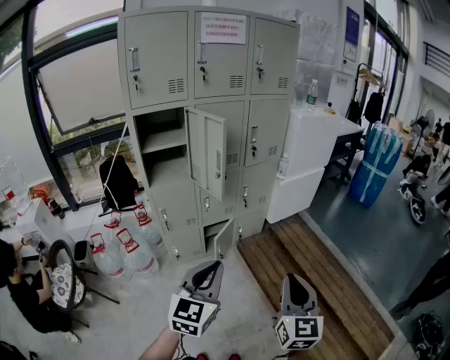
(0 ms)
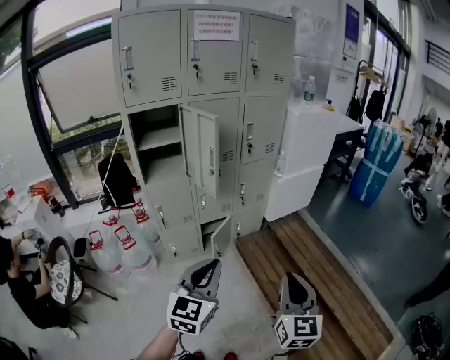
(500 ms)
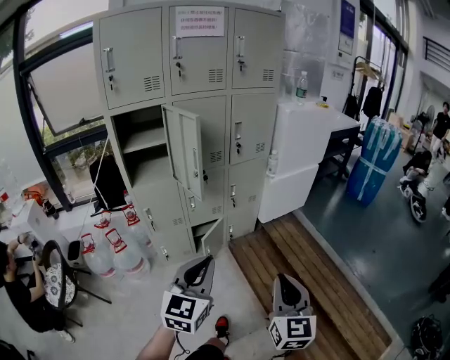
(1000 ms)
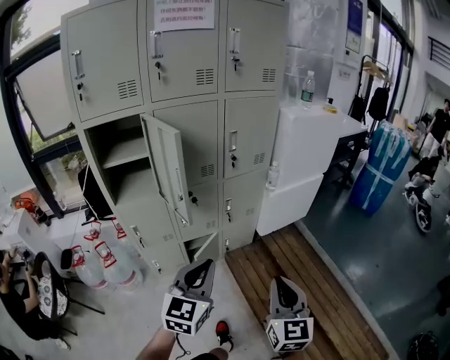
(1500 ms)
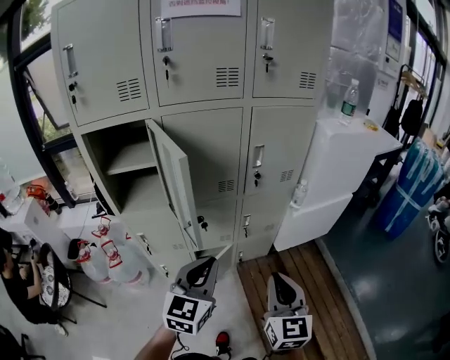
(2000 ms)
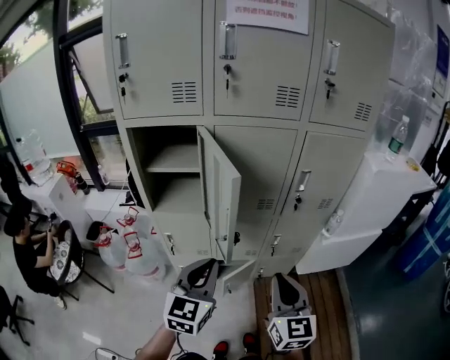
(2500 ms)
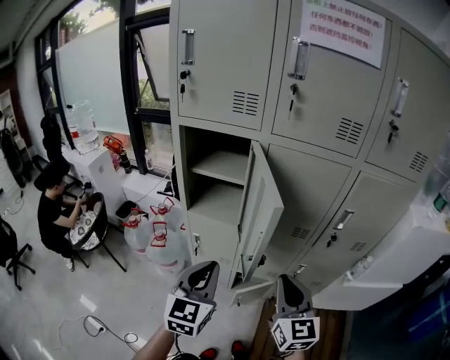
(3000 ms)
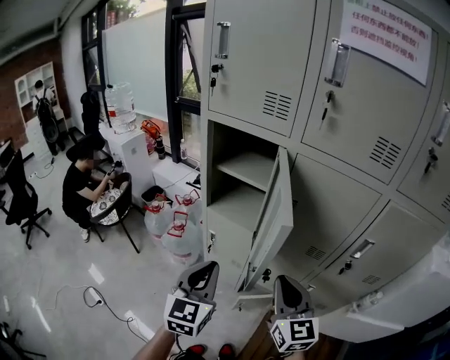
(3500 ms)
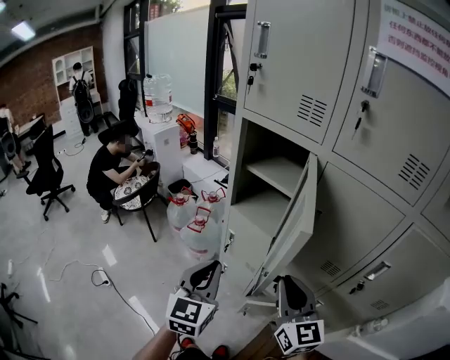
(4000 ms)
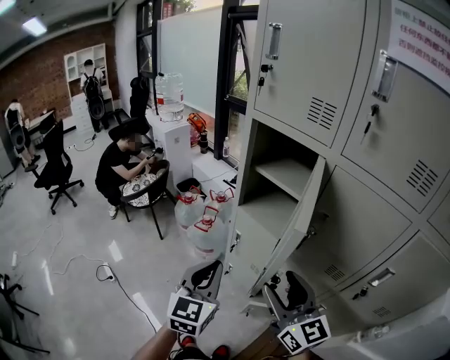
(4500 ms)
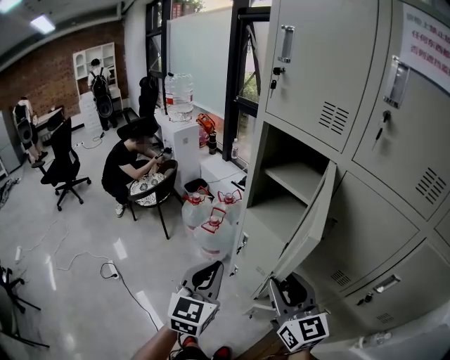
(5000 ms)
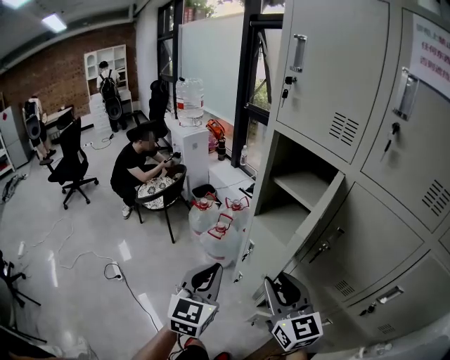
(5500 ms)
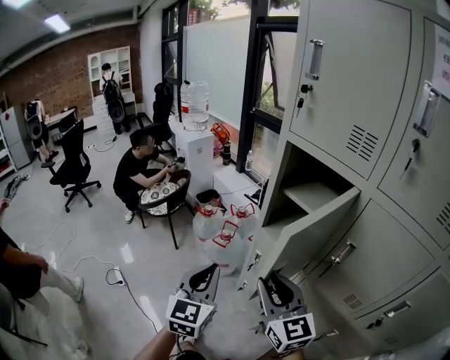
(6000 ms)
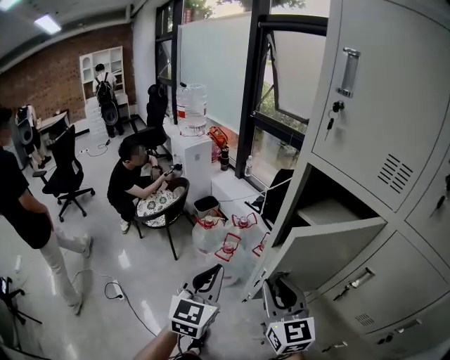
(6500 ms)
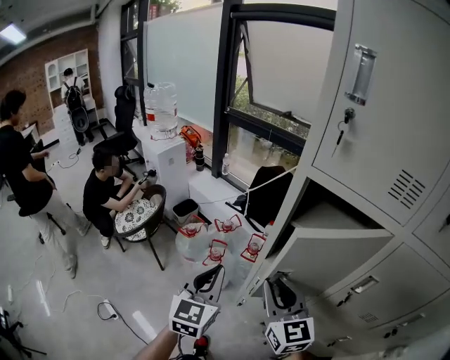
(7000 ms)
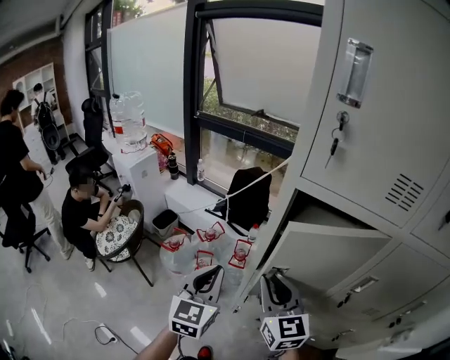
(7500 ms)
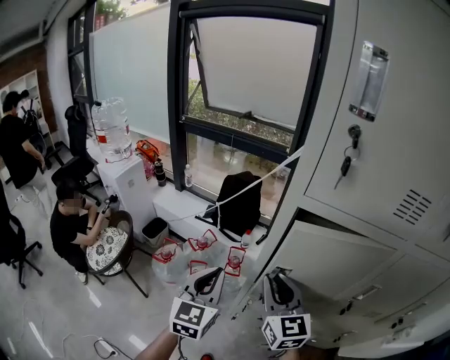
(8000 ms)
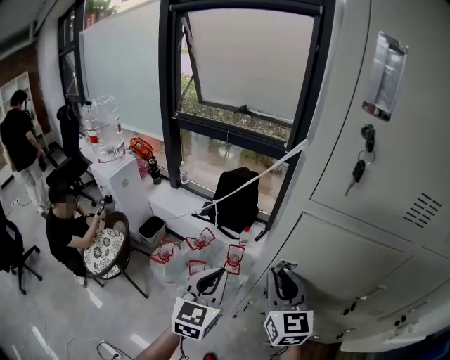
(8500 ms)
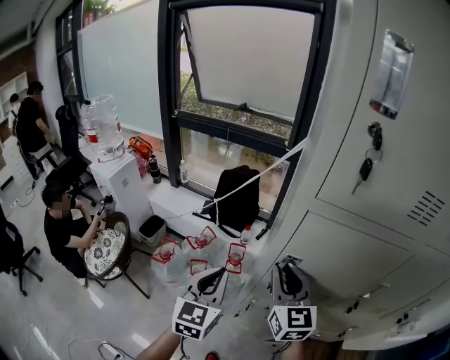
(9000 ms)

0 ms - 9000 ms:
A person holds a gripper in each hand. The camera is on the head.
0 ms - 2000 ms: The two grippers go roughly 35 cm forward.
2000 ms - 4500 ms: The left gripper shifts by some 20 cm, and rotates some 60 degrees. Meanwhile the right gripper ends up roughly 25 cm from where it was, swivels roughly 80 degrees, and opens its fingers.
4500 ms - 7000 ms: The grippers both shift forward and to the left by some 30 cm. The right gripper closes its fingers.
7000 ms - 9000 ms: Both grippers move forward, about 15 cm. The right gripper rotates approximately 30 degrees.

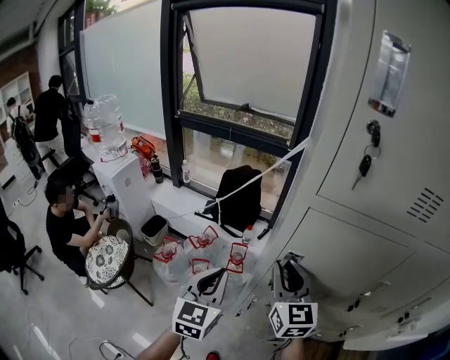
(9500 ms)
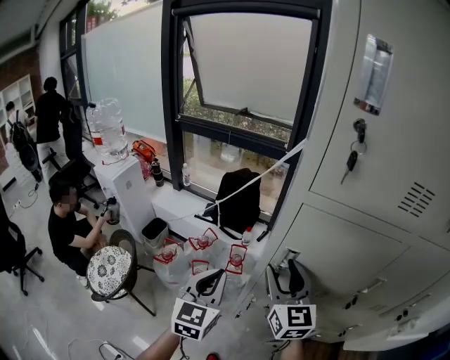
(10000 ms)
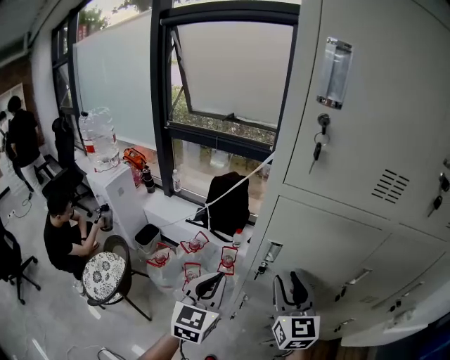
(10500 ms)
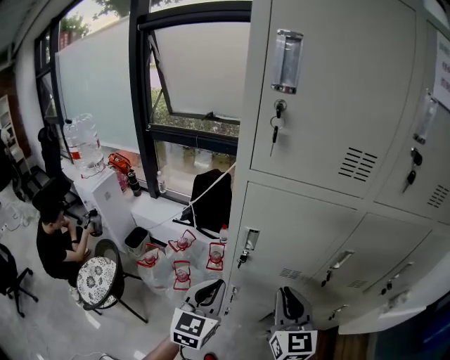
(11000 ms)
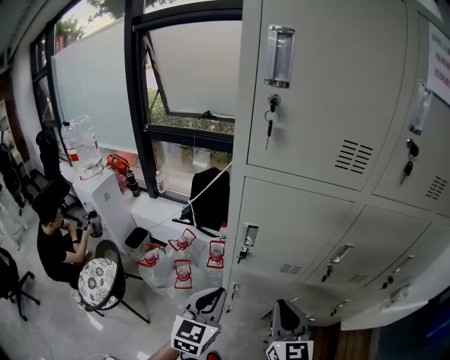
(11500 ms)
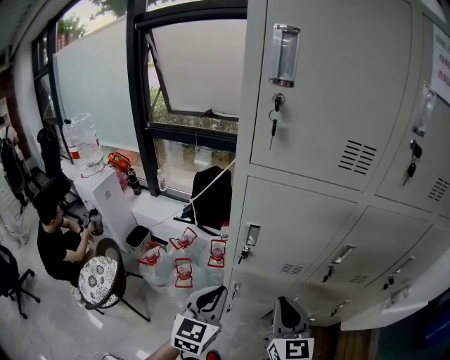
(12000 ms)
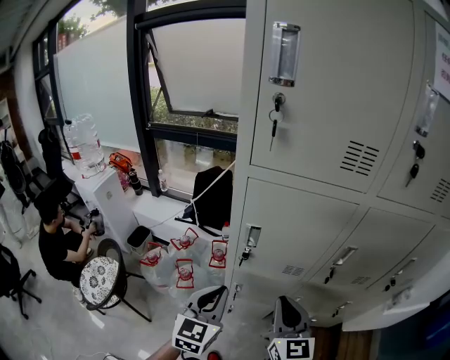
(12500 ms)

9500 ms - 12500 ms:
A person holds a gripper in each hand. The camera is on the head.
9500 ms - 11000 ms: The left gripper travels to the right and backward by some 10 cm, while the right gripper travels backward and to the right by some 20 cm, and opens, then closes once more.
11000 ms - 12500 ms: The grippers stay close to where they were, moving slightly.

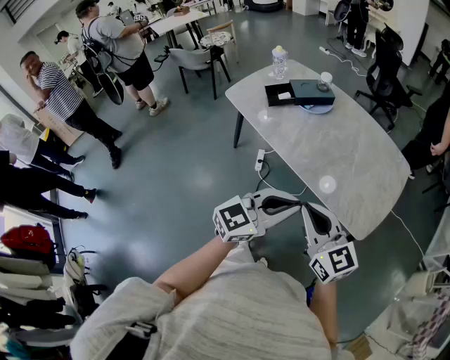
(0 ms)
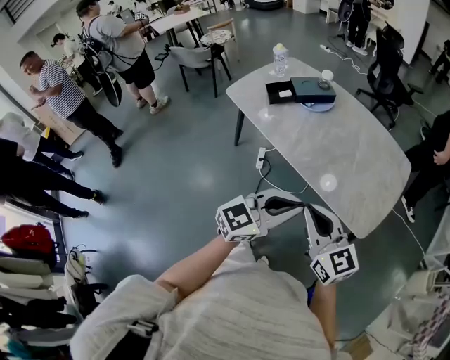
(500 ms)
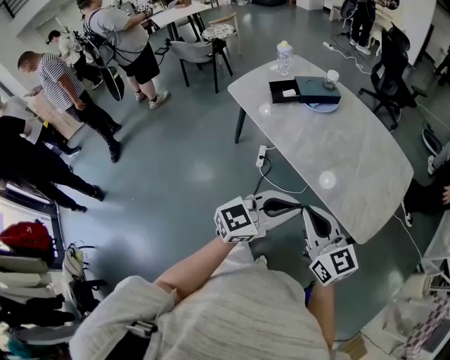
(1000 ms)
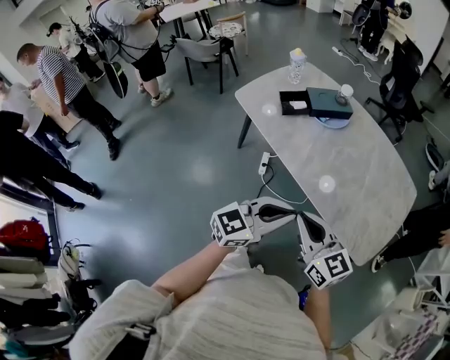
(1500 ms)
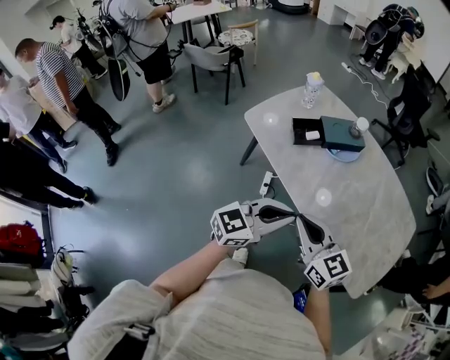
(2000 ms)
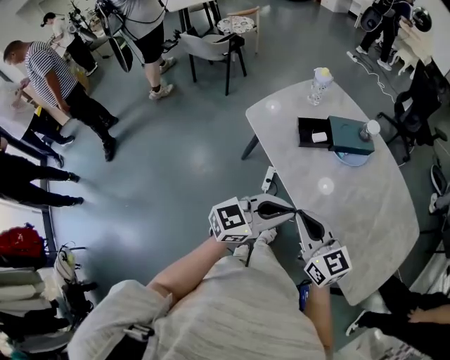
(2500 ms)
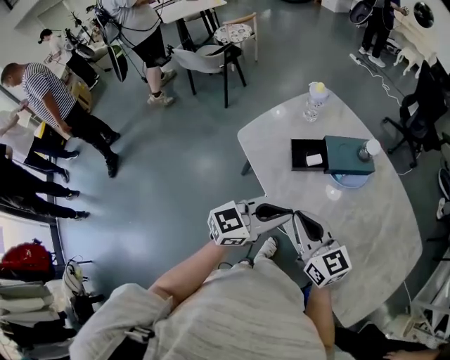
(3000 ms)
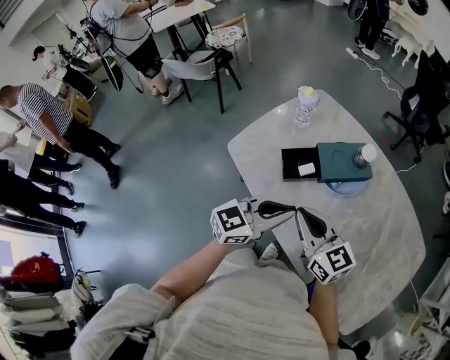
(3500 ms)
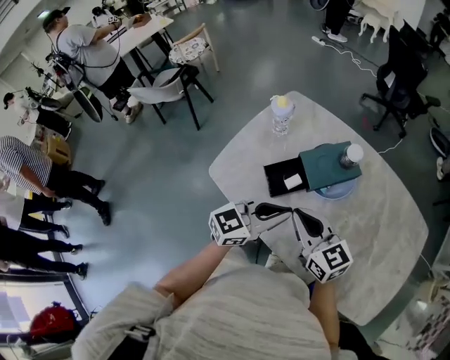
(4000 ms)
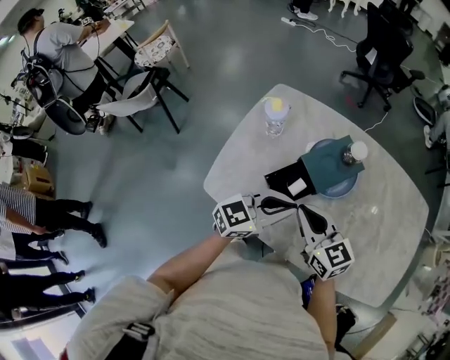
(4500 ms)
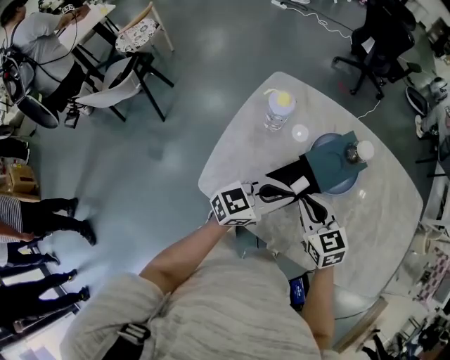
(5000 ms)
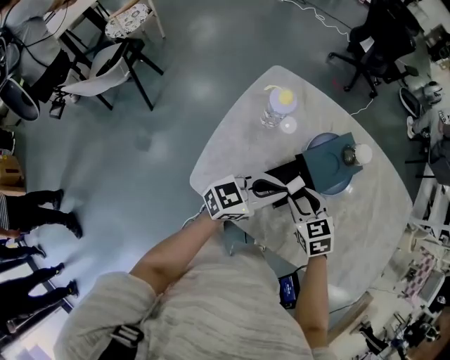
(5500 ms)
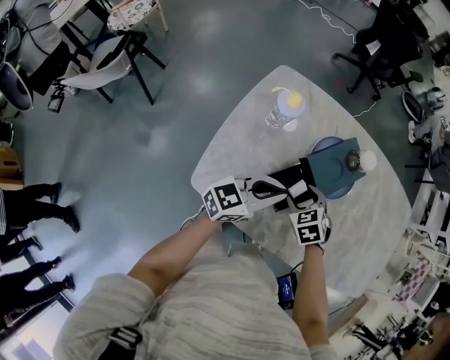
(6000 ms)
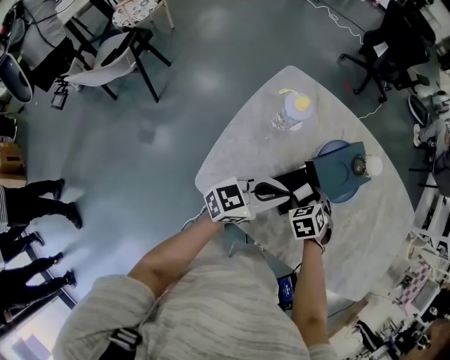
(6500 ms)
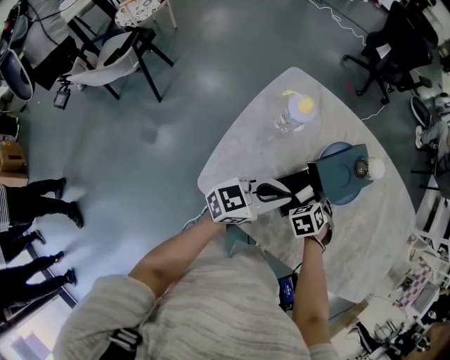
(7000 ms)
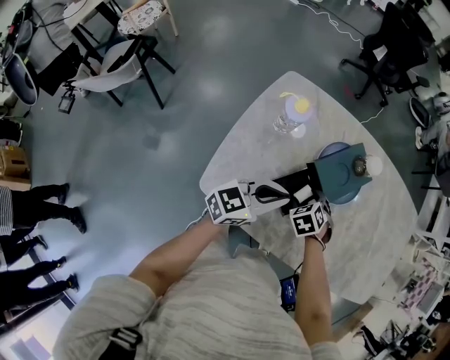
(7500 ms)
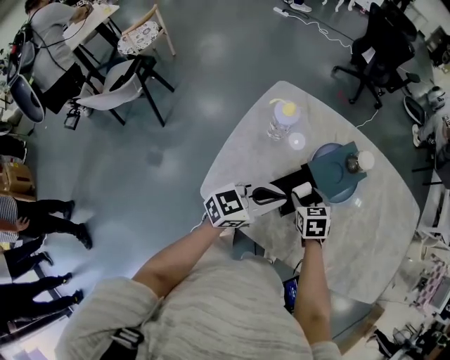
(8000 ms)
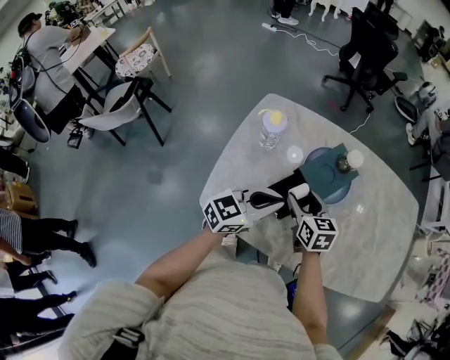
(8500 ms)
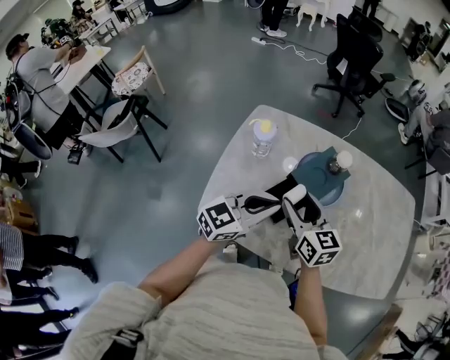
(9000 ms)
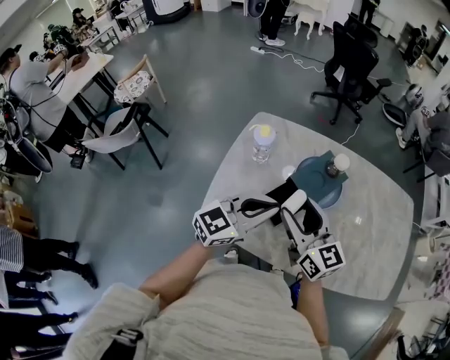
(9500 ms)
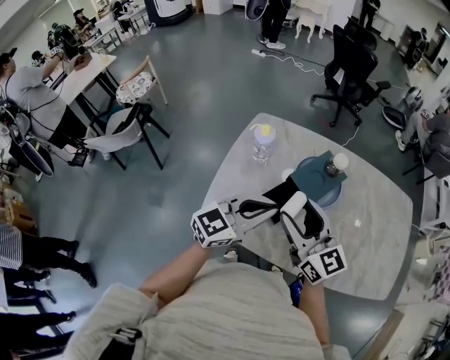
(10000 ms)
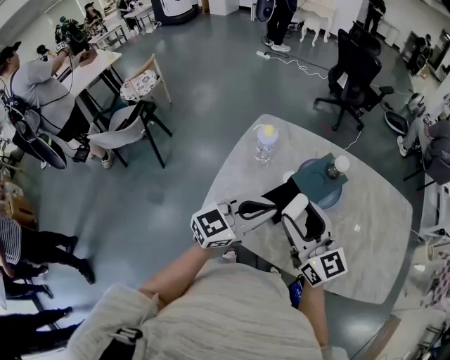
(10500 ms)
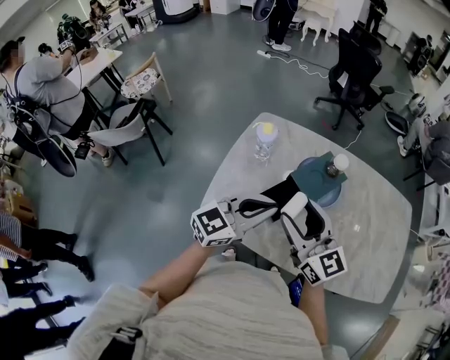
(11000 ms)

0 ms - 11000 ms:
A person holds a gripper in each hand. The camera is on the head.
0 ms - 2000 ms: The grippers both shift forward and to the left by some 25 cm.
2000 ms - 3500 ms: The two grippers go some 30 cm forward.
3500 ms - 5500 ms: The right gripper ends up some 25 cm from where it was, points its fingers approximately 40 degrees further downward, and opens up, while the left gripper ends up about 25 cm from where it was, and swivels some 30 degrees.
5500 ms - 7500 ms: The right gripper heads downward, covering roughly 10 cm, rotates about 30 degrees, and opens.
7500 ms - 9000 ms: The left gripper is displaced upward by roughly 10 cm. Meanwhile the right gripper travels upward by some 20 cm, and tips its fingers upward by some 50 degrees.
9000 ms - 11000 ms: The left gripper goes some 5 cm upward, while the right gripper goes roughly 15 cm upward and backward, and changes its angle by about 20 degrees.

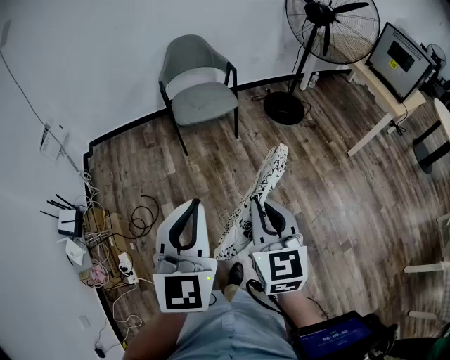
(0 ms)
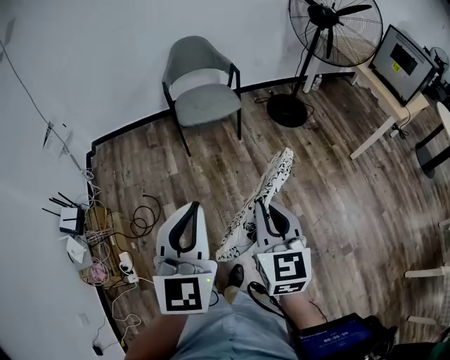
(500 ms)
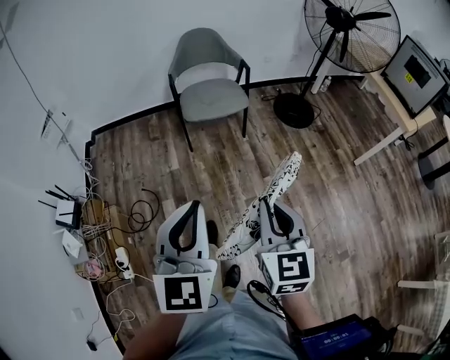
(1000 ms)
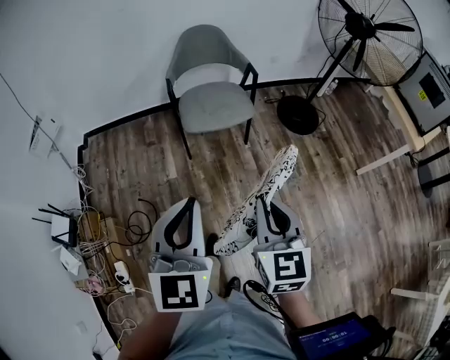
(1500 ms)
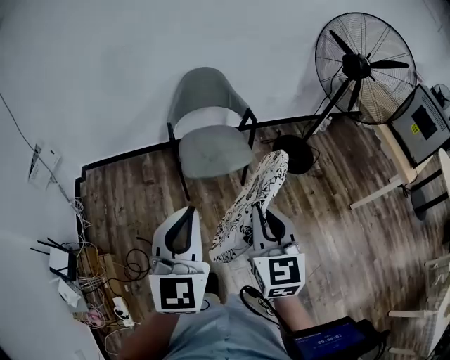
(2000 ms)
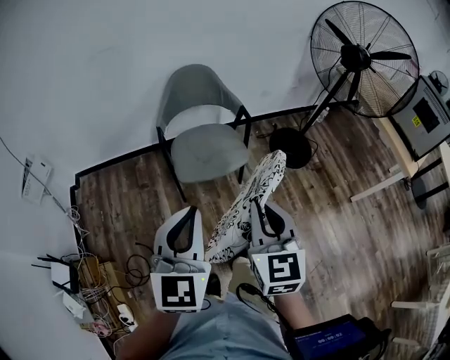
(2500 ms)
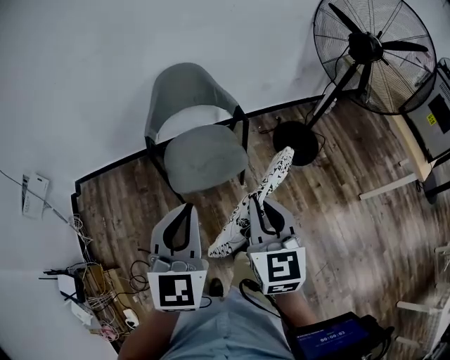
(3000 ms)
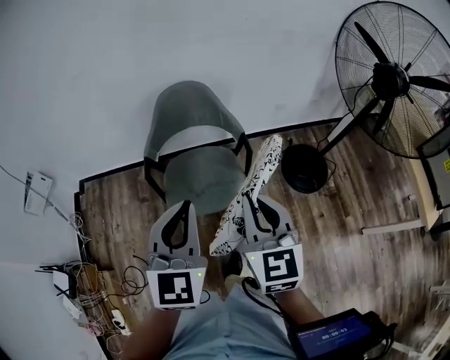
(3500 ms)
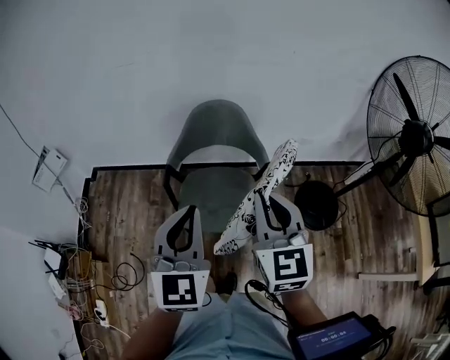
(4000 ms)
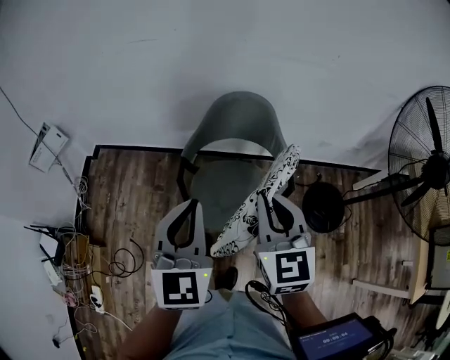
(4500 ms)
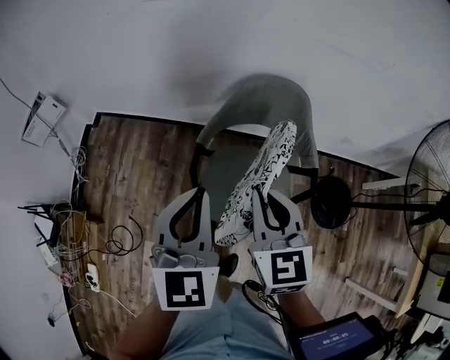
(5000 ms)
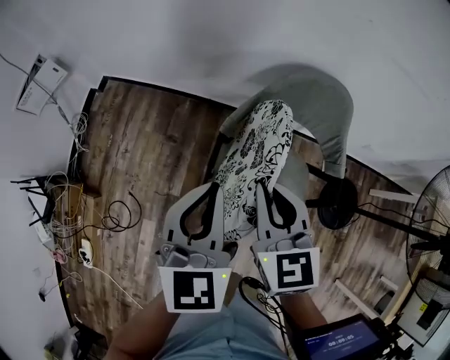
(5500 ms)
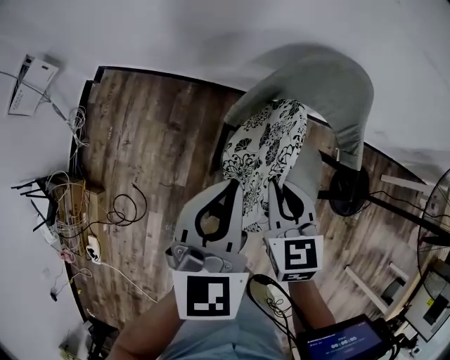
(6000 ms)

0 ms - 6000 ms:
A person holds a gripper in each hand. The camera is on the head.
0 ms - 2000 ms: The two grippers go approximately 30 cm forward.
2000 ms - 4000 ms: Both grippers travel together forward, roughly 35 cm.
4000 ms - 6000 ms: The left gripper shifts approximately 35 cm forward, downward and to the left. Meanwhile the right gripper moves downward, forward and to the left, about 40 cm, and rotates some 30 degrees.
